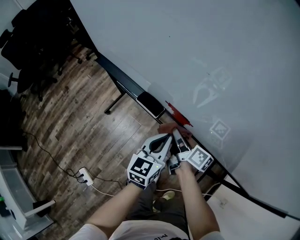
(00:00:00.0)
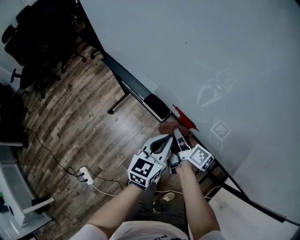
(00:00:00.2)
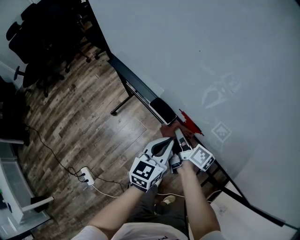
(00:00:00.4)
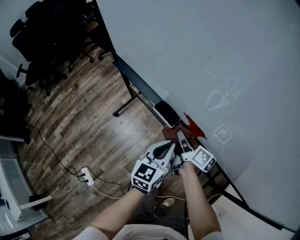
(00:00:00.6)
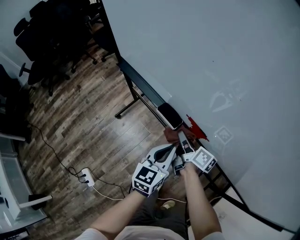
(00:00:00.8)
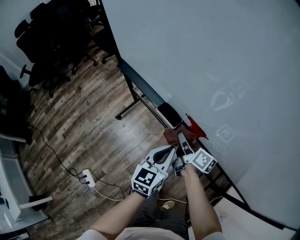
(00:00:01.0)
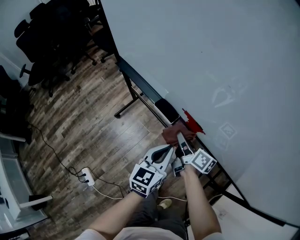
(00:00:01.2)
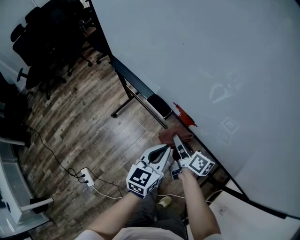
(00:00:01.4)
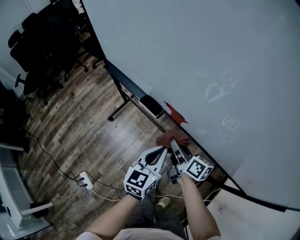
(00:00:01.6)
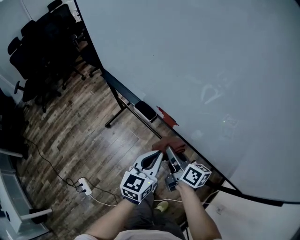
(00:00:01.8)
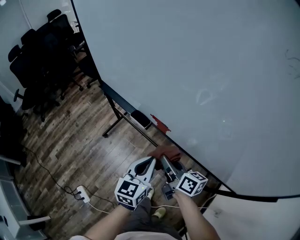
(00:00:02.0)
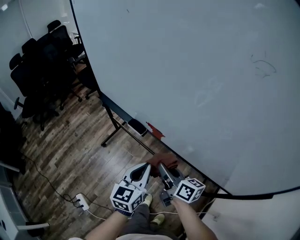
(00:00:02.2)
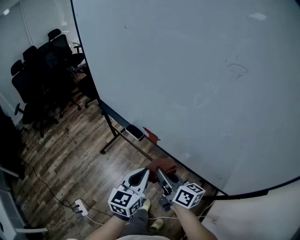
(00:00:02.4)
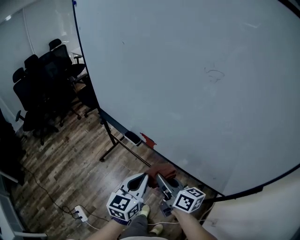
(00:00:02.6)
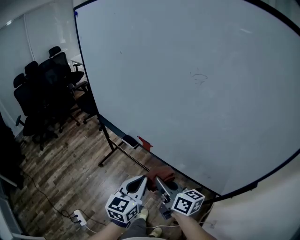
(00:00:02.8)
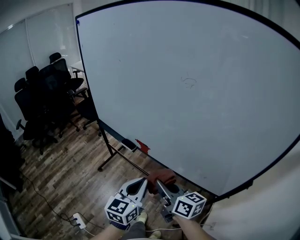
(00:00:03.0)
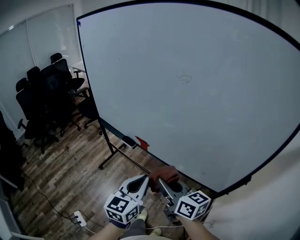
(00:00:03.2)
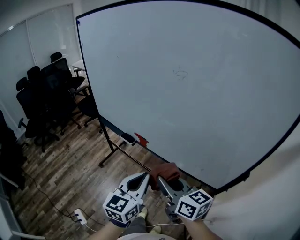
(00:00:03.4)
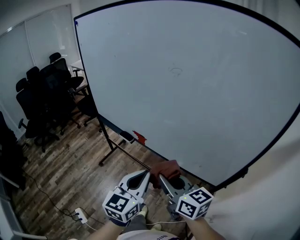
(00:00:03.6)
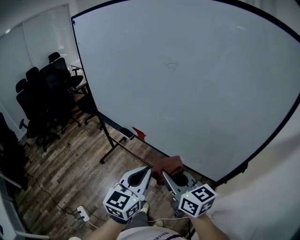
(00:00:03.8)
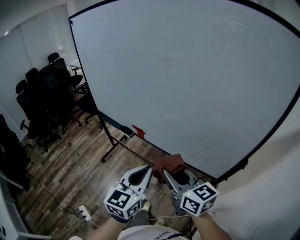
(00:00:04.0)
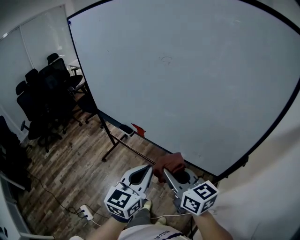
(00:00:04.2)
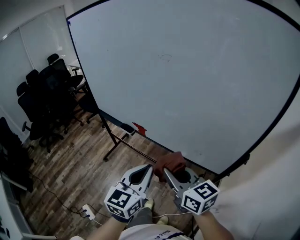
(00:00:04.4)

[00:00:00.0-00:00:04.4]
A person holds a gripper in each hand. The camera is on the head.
00:00:00.0 to 00:00:01.4: The right gripper moves some 5 cm, while the left gripper shifts by some 5 cm.
00:00:01.4 to 00:00:03.0: The two grippers go about 35 cm upward and backward. The right gripper changes its angle by approximately 30 degrees.
00:00:03.0 to 00:00:04.4: The left gripper goes approximately 10 cm backward, to the right and upward. The right gripper is displaced backward, upward and to the right by approximately 10 cm.

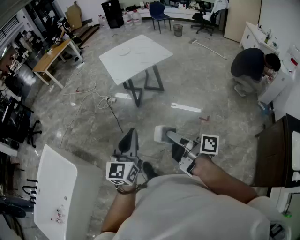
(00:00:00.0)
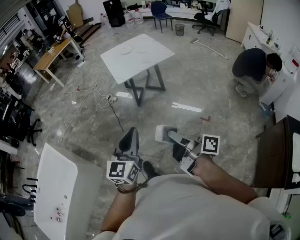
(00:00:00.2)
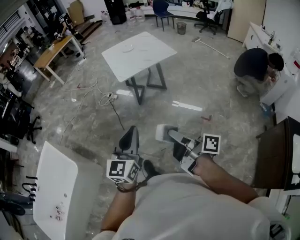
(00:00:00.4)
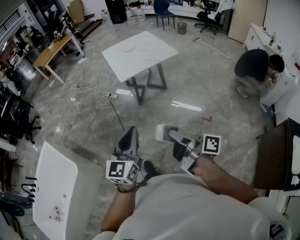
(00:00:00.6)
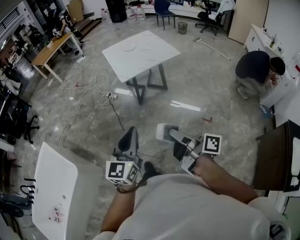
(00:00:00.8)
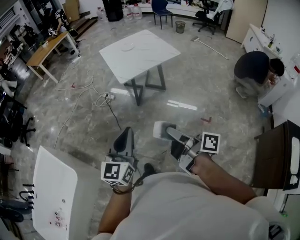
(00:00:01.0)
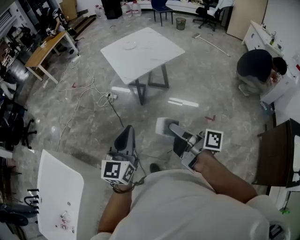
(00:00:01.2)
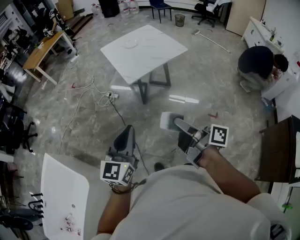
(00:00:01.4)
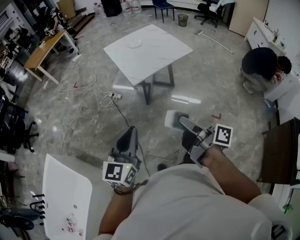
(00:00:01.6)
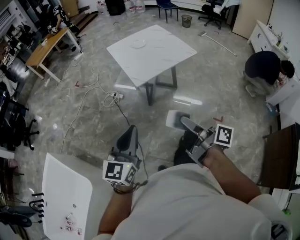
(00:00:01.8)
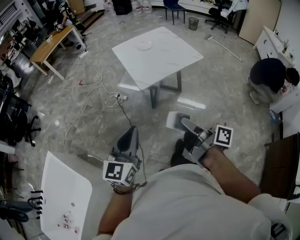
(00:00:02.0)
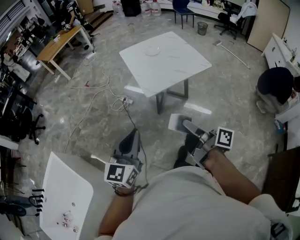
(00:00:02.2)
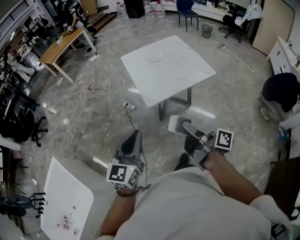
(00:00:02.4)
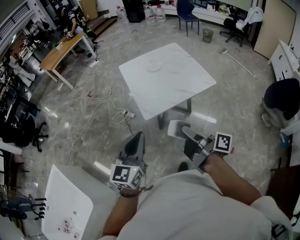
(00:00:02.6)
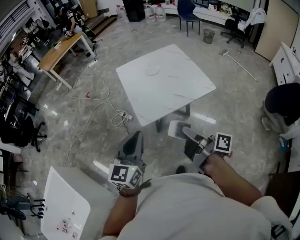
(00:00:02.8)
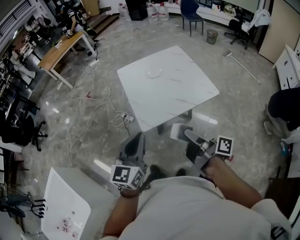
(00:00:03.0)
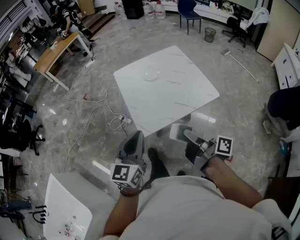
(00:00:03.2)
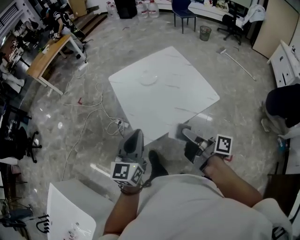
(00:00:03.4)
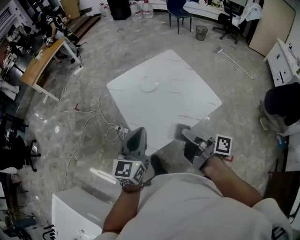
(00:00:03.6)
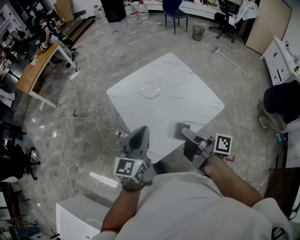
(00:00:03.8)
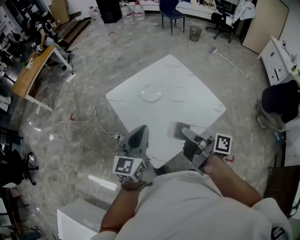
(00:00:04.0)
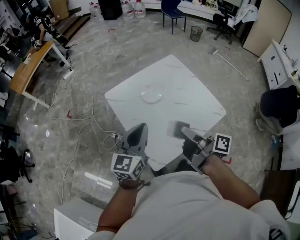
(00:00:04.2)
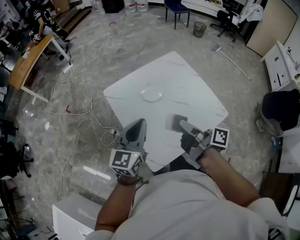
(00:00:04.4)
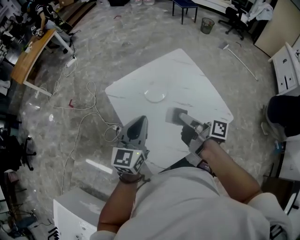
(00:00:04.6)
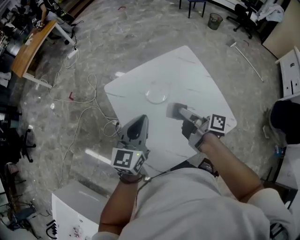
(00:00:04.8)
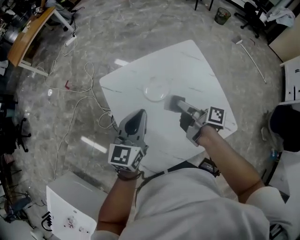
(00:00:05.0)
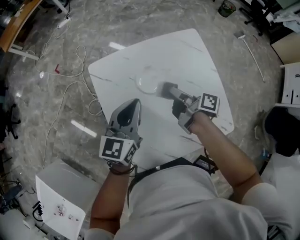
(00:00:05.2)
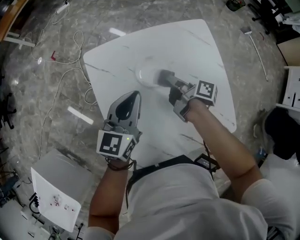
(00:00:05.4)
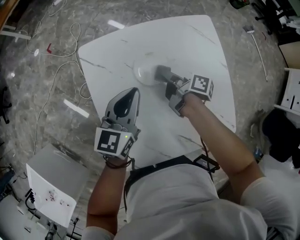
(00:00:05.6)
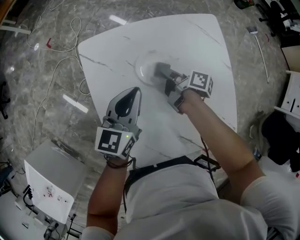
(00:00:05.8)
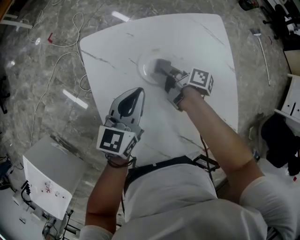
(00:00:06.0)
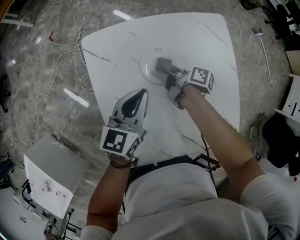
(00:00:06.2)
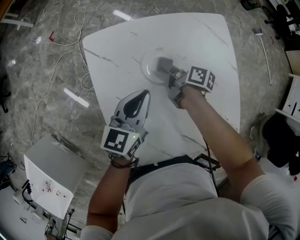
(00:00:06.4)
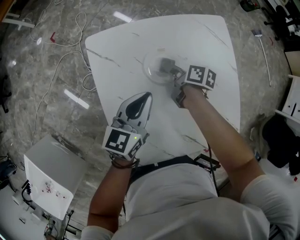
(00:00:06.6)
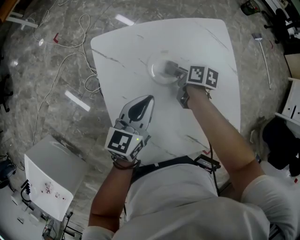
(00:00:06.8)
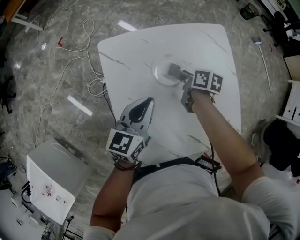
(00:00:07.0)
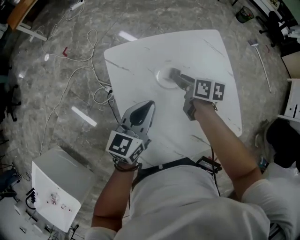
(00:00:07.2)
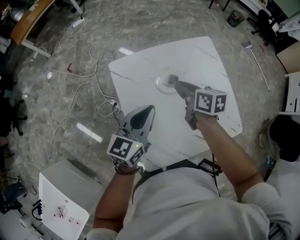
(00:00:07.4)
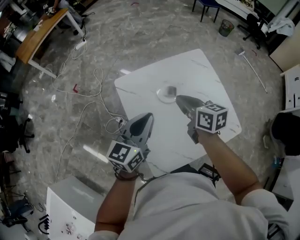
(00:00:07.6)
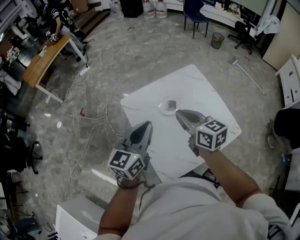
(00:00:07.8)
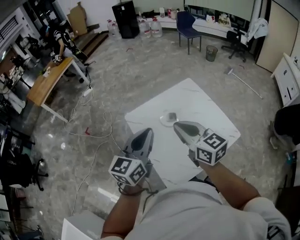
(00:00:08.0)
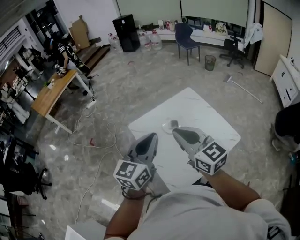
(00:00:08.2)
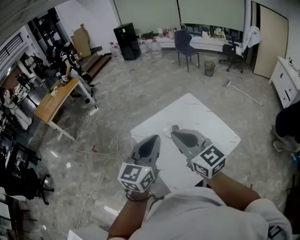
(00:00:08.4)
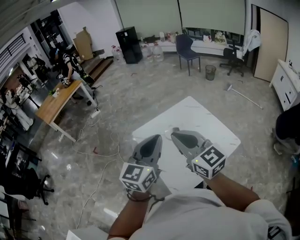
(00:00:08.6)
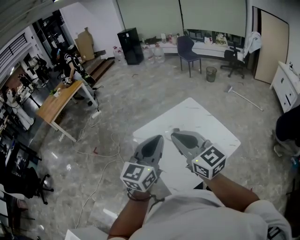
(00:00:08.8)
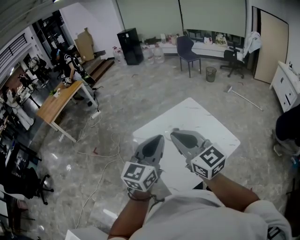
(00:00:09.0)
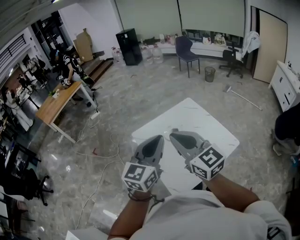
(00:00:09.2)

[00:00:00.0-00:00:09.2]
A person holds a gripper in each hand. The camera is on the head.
00:00:00.0 to 00:00:01.6: Both grippers travel together forward and to the left, about 30 cm.
00:00:01.6 to 00:00:03.0: The pair of grippers is taken forward, approximately 40 cm.
00:00:03.0 to 00:00:04.6: The pair of grippers is taken forward, about 50 cm.
00:00:04.6 to 00:00:06.2: The two grippers go some 35 cm downward and forward. The right gripper turns by approximately 30 degrees.
00:00:06.2 to 00:00:07.6: The right gripper goes approximately 35 cm upward and backward, rotates around the line of its fingers by approximately 50 degrees, counterclockwise from behind, and closes its fingers. Meanwhile the left gripper moves upward, backward and to the left, about 25 cm.
00:00:07.6 to 00:00:09.2: Both grippers move upward and backward, approximately 35 cm. The left gripper rotates some 20 degrees, while the right gripper swivels approximately 40 degrees.

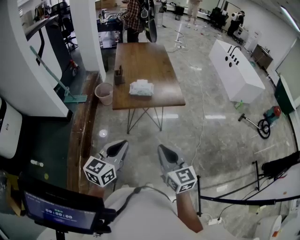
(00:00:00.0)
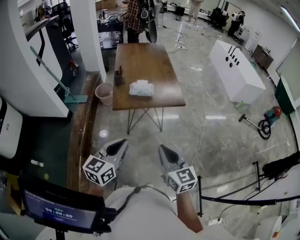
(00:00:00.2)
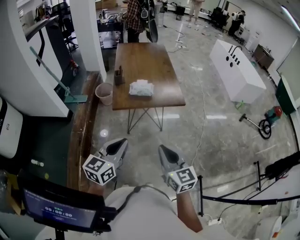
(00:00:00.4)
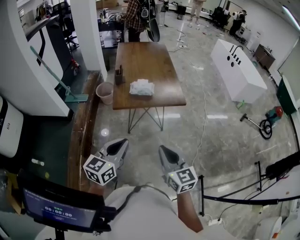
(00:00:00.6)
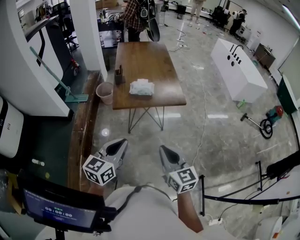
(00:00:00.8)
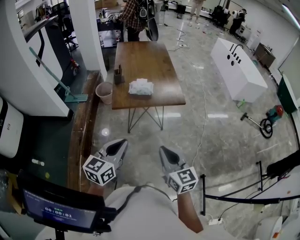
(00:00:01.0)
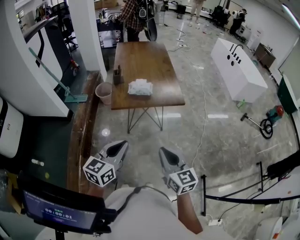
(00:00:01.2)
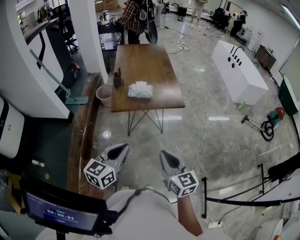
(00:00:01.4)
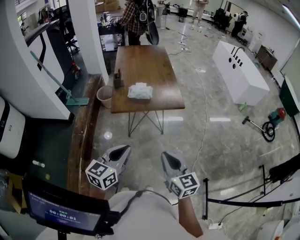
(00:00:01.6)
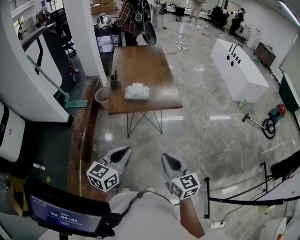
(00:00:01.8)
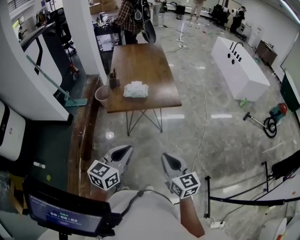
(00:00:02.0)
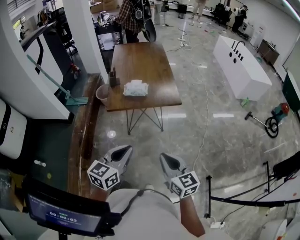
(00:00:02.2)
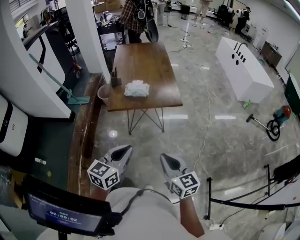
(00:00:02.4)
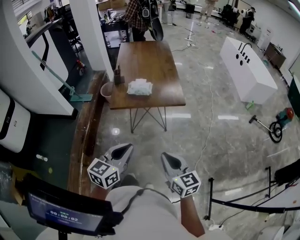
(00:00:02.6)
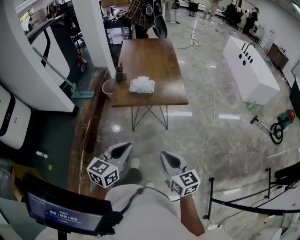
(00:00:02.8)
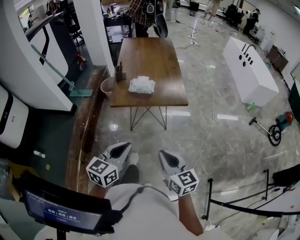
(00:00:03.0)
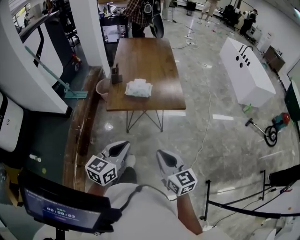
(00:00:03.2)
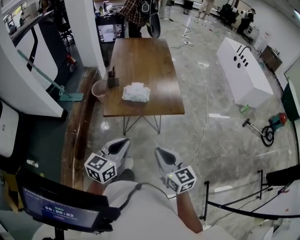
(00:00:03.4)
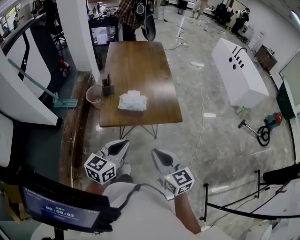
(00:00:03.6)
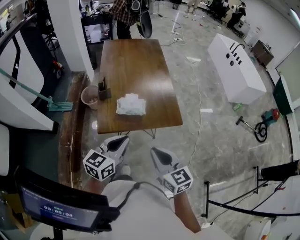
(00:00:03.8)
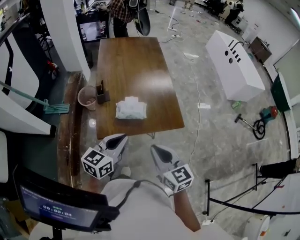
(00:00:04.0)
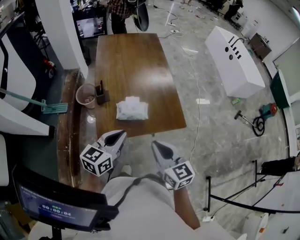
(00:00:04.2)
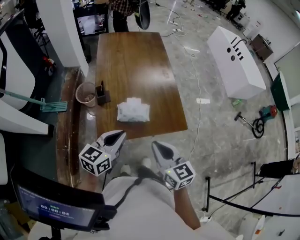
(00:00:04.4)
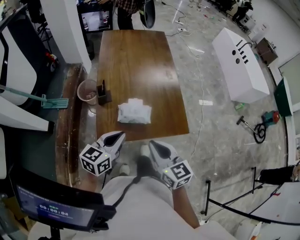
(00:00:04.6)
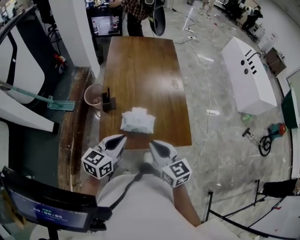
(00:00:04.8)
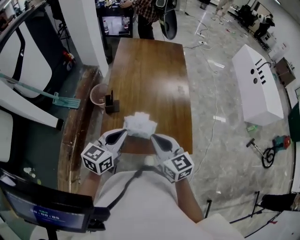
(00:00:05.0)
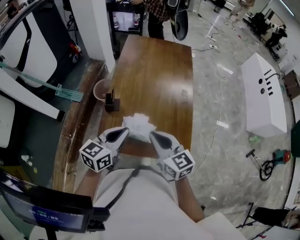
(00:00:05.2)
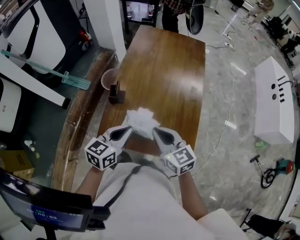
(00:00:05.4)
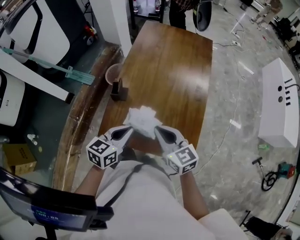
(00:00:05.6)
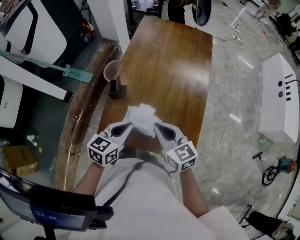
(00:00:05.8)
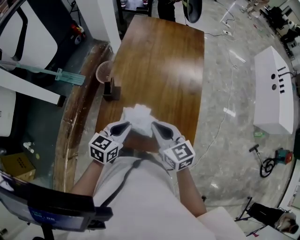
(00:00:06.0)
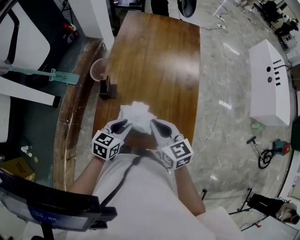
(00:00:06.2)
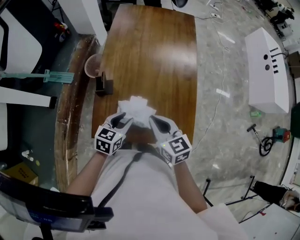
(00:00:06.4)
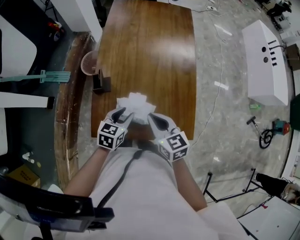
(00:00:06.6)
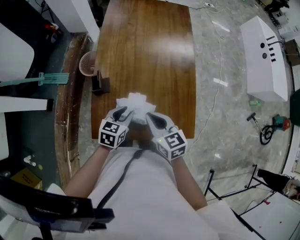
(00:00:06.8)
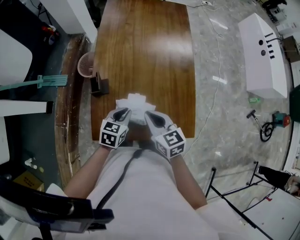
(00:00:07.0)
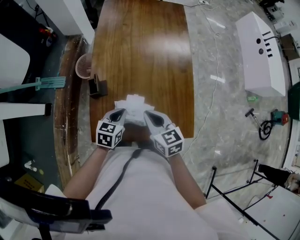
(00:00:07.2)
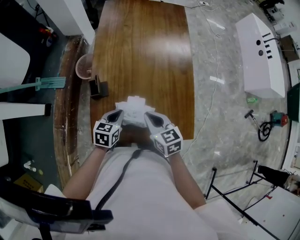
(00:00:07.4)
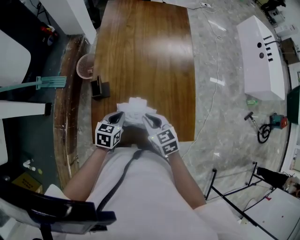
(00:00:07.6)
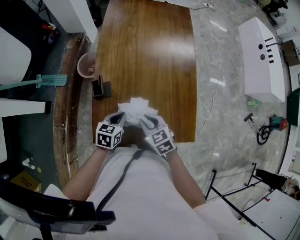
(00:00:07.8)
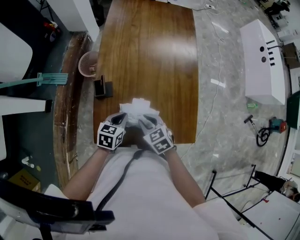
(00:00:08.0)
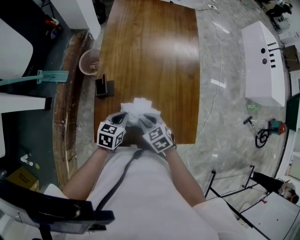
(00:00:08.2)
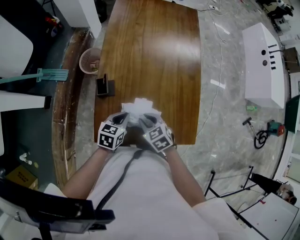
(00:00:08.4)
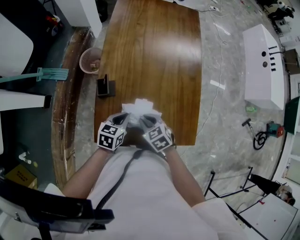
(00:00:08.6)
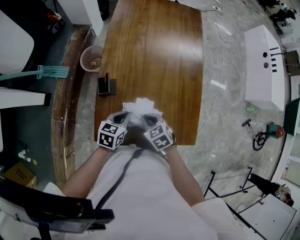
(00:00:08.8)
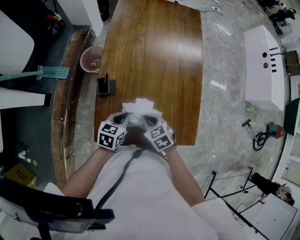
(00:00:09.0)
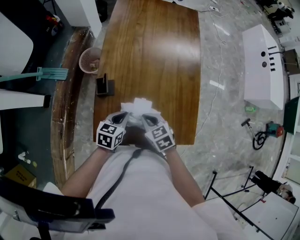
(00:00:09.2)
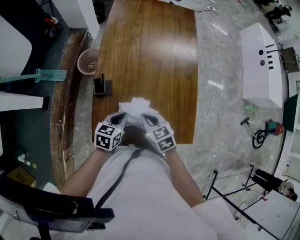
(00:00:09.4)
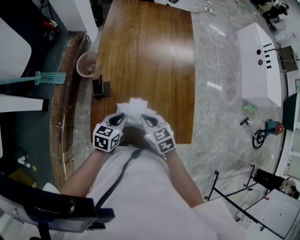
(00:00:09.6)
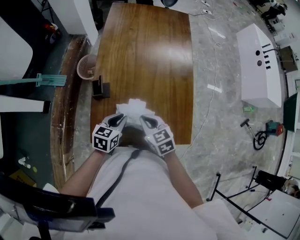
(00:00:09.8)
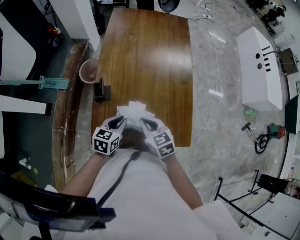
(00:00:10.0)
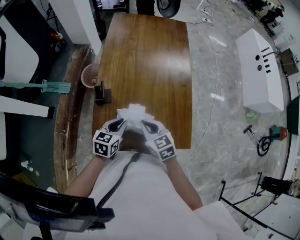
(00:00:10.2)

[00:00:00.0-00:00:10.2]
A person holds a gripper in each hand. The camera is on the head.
00:00:00.0 to 00:00:01.4: The grippers move only a little.
00:00:01.4 to 00:00:03.0: The right gripper shifts by approximately 5 cm. Meanwhile the left gripper heads to the right, covering some 5 cm.
00:00:03.0 to 00:00:04.4: Both grippers travel together forward, about 35 cm.
00:00:04.4 to 00:00:05.8: The right gripper moves about 20 cm, and rotates some 30 degrees. Meanwhile the left gripper changes place by about 15 cm, and rotates some 30 degrees.
00:00:05.8 to 00:00:07.2: The left gripper is displaced downward and forward by some 15 cm, and opens and closes again, while the right gripper shifts some 10 cm downward, and changes its angle by roughly 20 degrees.
00:00:07.2 to 00:00:08.8: The right gripper goes roughly 10 cm downward, and swivels some 30 degrees.
00:00:08.8 to 00:00:10.2: The left gripper shifts by some 5 cm. The right gripper shifts some 10 cm upward, and swivels about 20 degrees.
